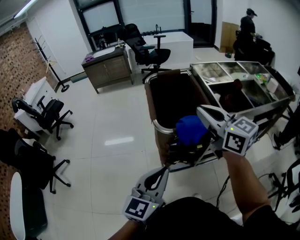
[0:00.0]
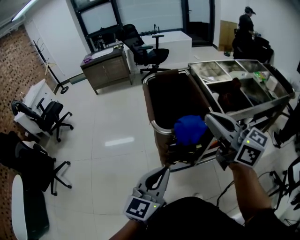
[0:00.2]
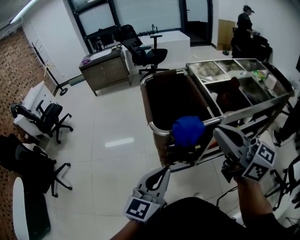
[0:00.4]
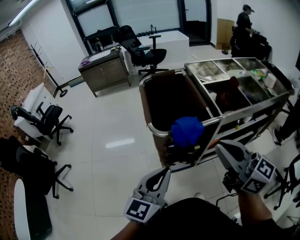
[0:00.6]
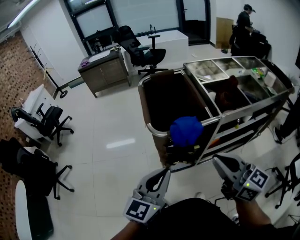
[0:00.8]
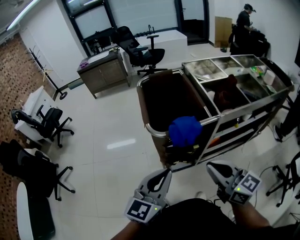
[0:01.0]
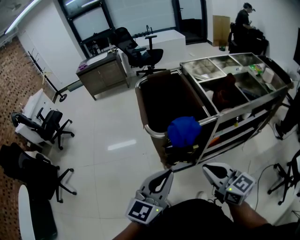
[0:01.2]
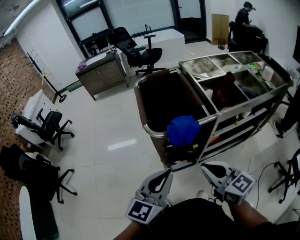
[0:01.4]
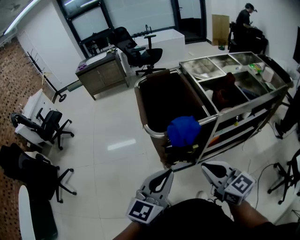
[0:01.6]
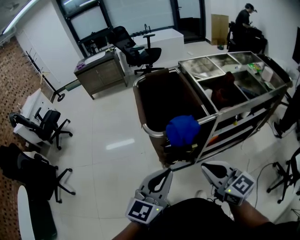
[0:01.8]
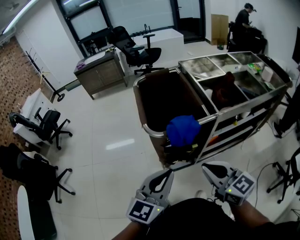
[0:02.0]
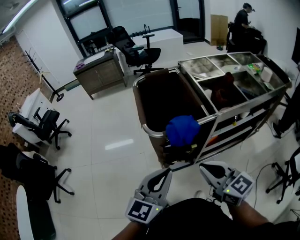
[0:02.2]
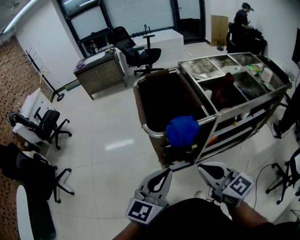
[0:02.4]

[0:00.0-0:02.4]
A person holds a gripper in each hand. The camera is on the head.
0:00.0 to 0:01.2: The right gripper moves backward and downward, about 20 cm.
0:01.2 to 0:02.4: The grippers make only small movements.

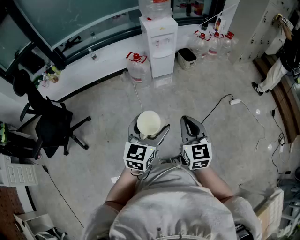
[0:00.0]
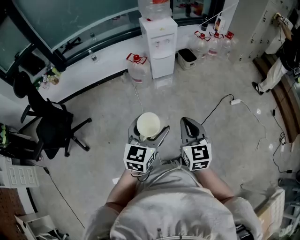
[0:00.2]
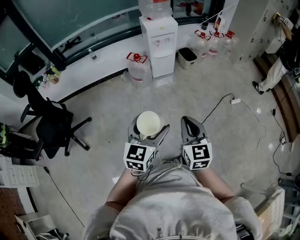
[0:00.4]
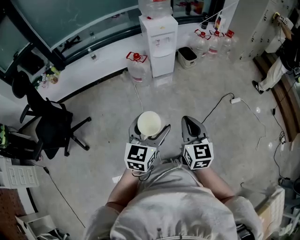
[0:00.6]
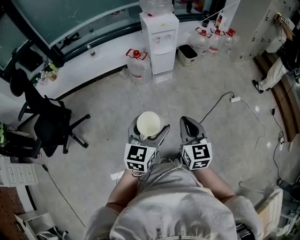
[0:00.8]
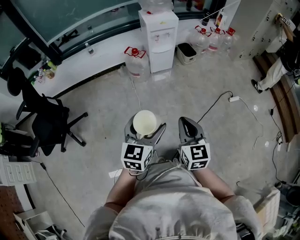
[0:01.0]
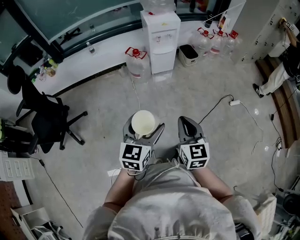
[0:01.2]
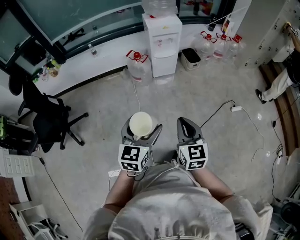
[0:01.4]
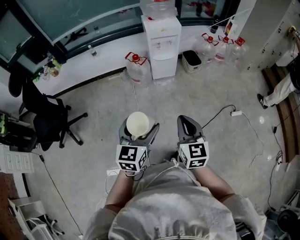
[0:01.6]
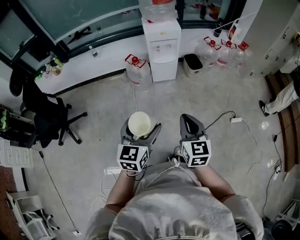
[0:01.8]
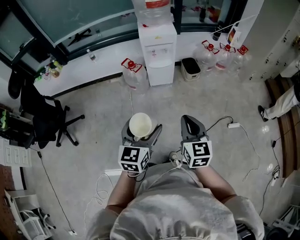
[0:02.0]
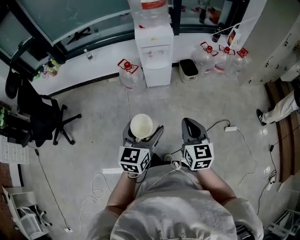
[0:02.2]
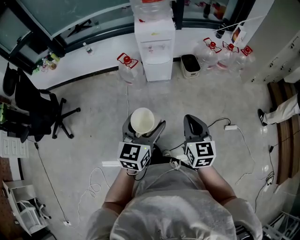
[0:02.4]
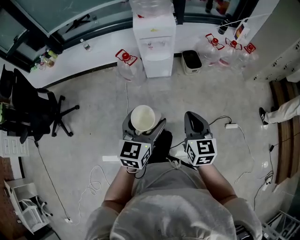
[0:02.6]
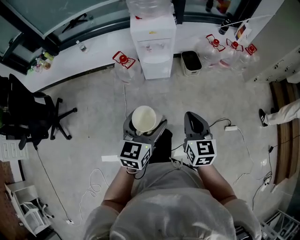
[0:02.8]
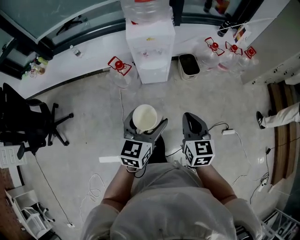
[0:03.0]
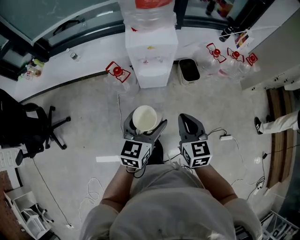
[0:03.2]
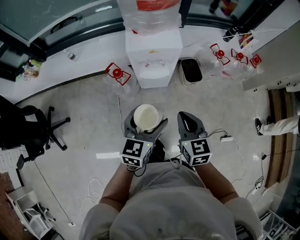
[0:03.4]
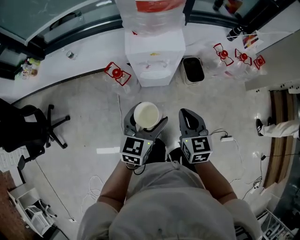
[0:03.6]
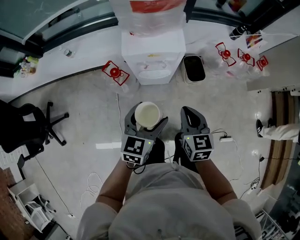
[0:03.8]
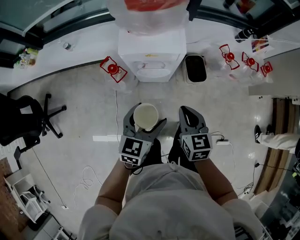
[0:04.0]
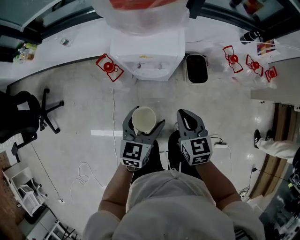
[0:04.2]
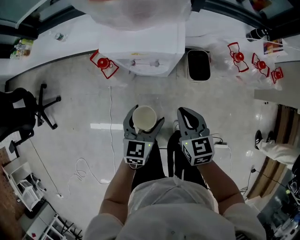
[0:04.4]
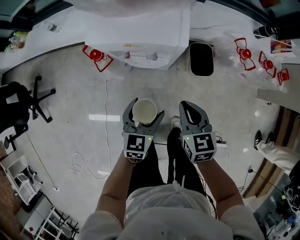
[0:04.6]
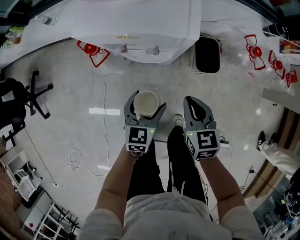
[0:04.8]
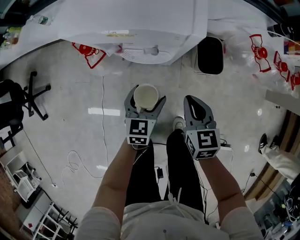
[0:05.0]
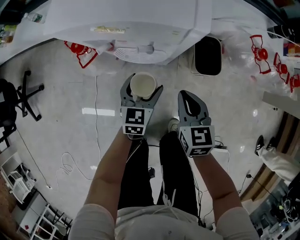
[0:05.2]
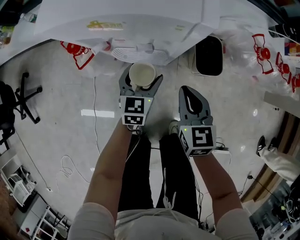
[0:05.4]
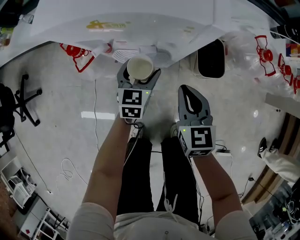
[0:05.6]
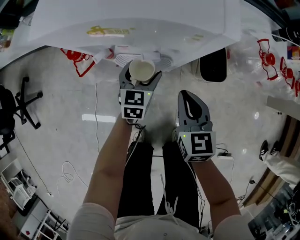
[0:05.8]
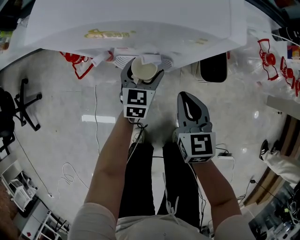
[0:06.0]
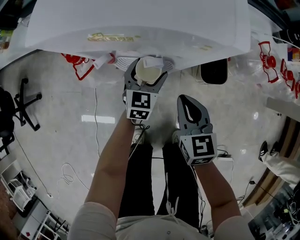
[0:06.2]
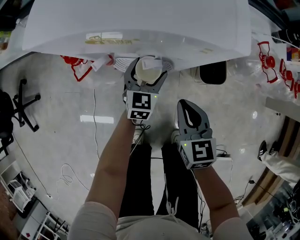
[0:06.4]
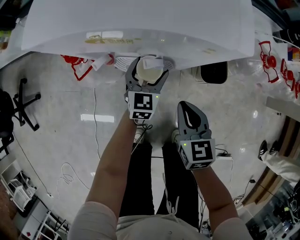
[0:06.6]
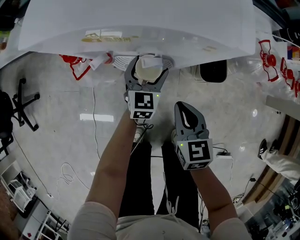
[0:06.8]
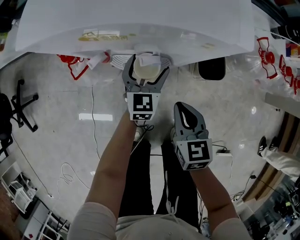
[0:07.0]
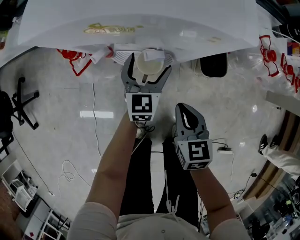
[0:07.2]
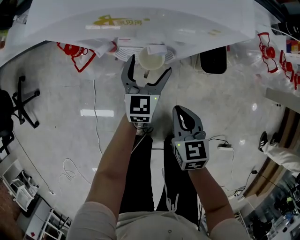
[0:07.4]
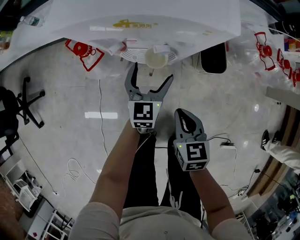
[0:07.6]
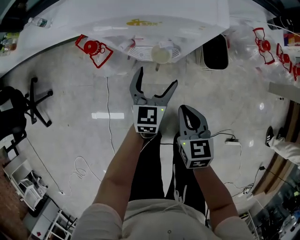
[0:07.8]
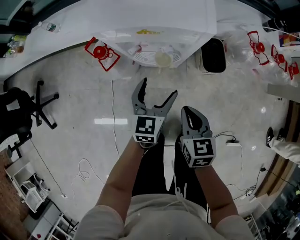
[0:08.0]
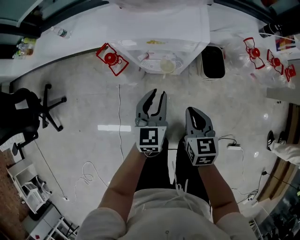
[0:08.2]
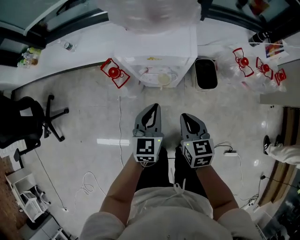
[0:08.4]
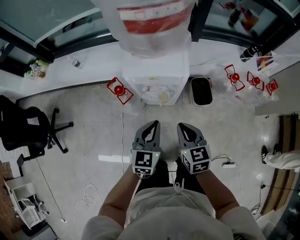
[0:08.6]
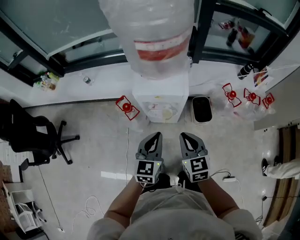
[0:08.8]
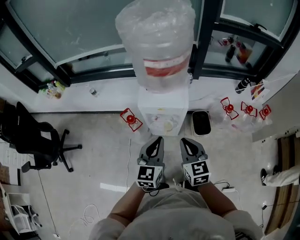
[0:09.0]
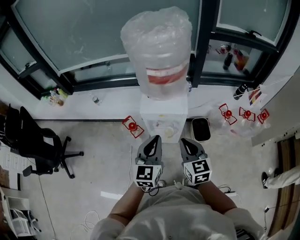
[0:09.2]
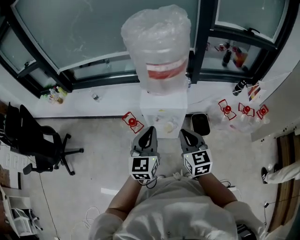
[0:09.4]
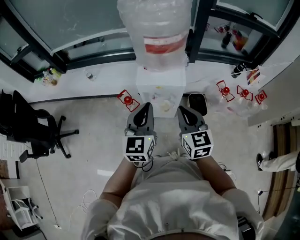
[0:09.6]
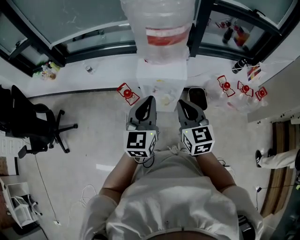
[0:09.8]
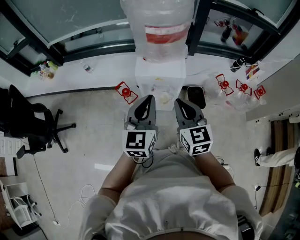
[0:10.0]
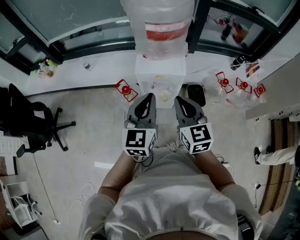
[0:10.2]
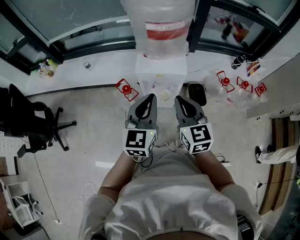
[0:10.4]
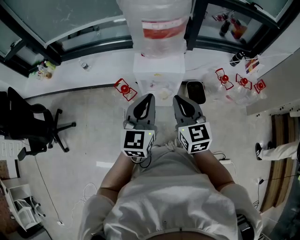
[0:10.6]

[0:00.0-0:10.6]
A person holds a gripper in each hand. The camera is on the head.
0:00.0 to 0:01.6: The left gripper moves forward, about 10 cm. Meanwhile the right gripper goes approximately 15 cm forward and to the right.
0:01.6 to 0:03.0: Both grippers move forward and to the right, some 35 cm.
0:03.0 to 0:04.6: Both grippers travel together forward and downward, approximately 35 cm. The right gripper rotates approximately 20 degrees.
0:04.6 to 0:06.0: The right gripper shifts roughly 15 cm downward and forward. Meanwhile the left gripper heads downward and forward, covering approximately 30 cm.
0:06.0 to 0:07.6: The left gripper travels upward and backward by approximately 10 cm. The right gripper moves backward, roughly 10 cm.
0:07.6 to 0:09.0: The two grippers go roughly 40 cm upward. The left gripper closes. The right gripper turns by roughly 20 degrees.
0:09.0 to 0:10.6: Both grippers move upward, about 10 cm.

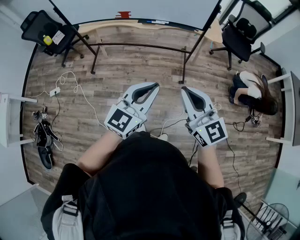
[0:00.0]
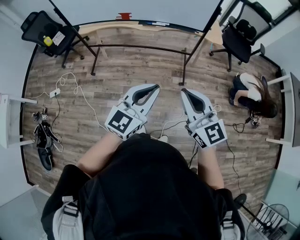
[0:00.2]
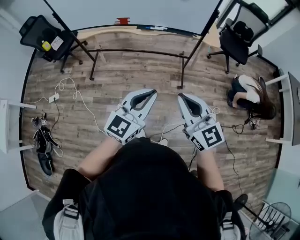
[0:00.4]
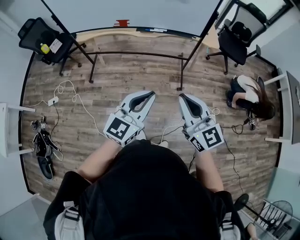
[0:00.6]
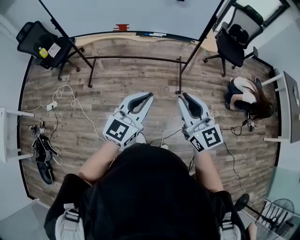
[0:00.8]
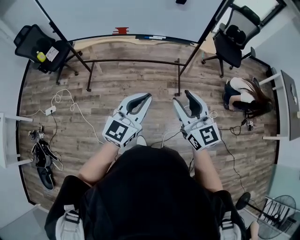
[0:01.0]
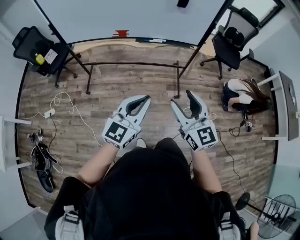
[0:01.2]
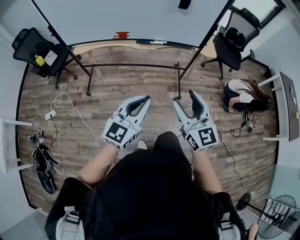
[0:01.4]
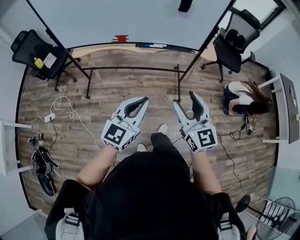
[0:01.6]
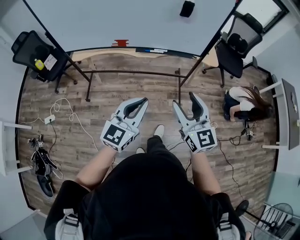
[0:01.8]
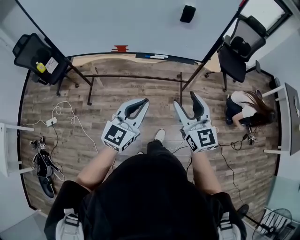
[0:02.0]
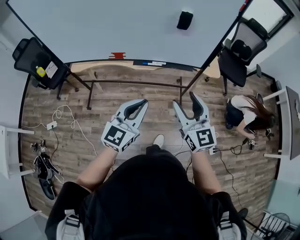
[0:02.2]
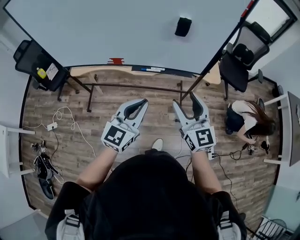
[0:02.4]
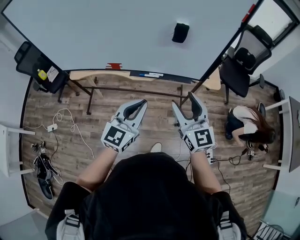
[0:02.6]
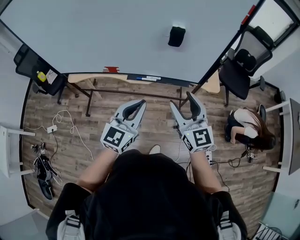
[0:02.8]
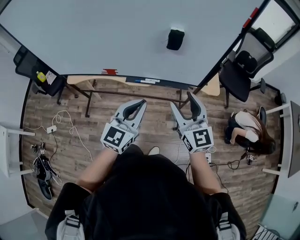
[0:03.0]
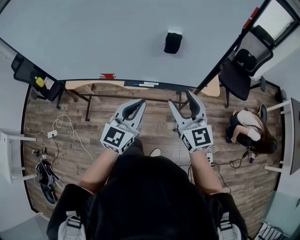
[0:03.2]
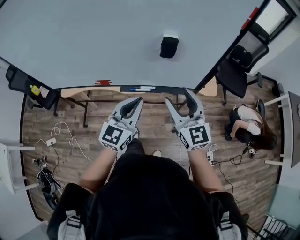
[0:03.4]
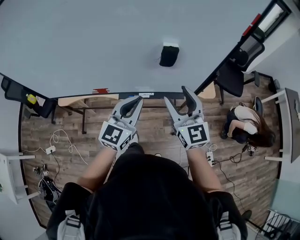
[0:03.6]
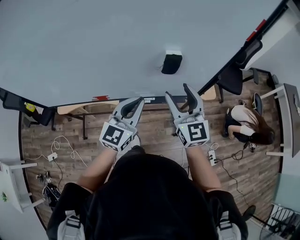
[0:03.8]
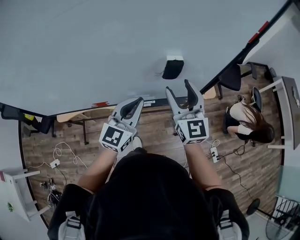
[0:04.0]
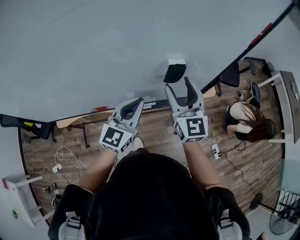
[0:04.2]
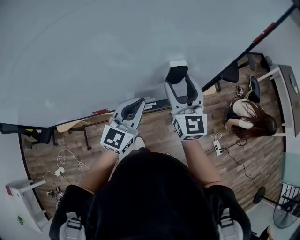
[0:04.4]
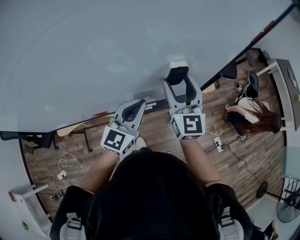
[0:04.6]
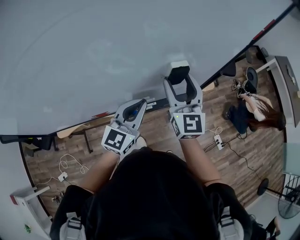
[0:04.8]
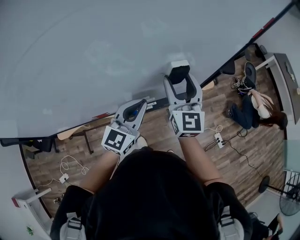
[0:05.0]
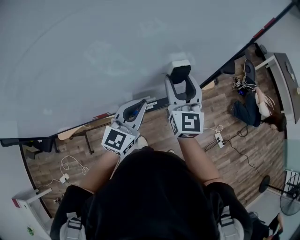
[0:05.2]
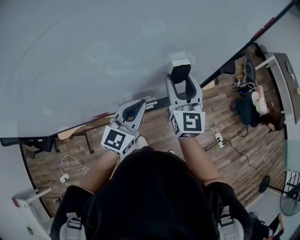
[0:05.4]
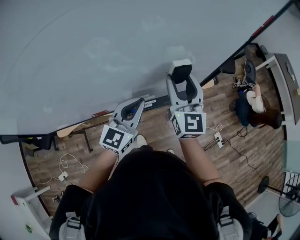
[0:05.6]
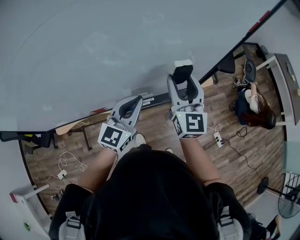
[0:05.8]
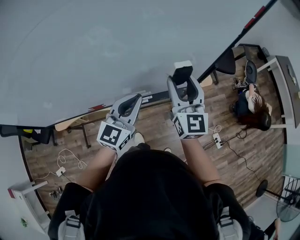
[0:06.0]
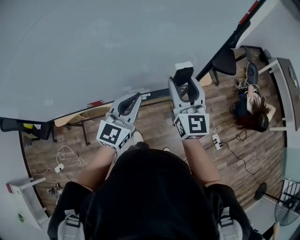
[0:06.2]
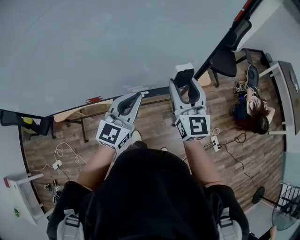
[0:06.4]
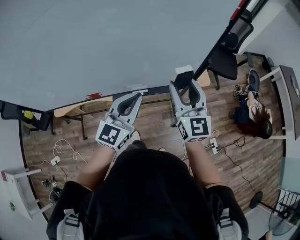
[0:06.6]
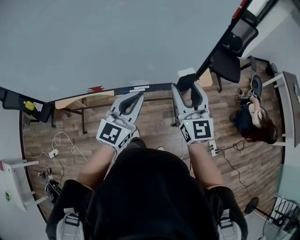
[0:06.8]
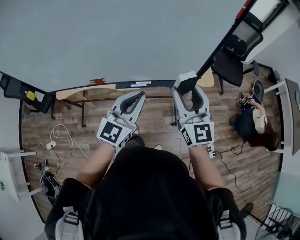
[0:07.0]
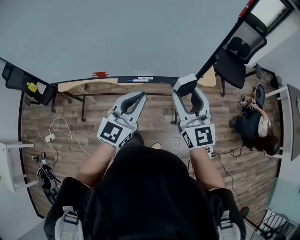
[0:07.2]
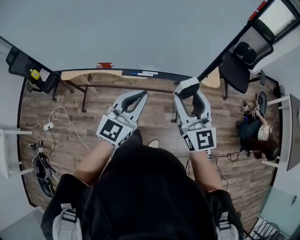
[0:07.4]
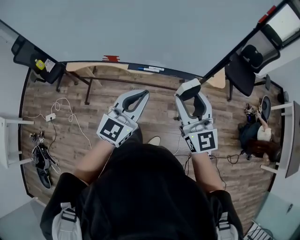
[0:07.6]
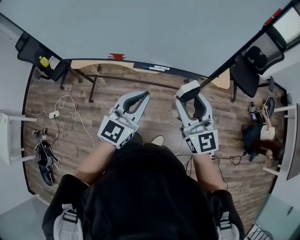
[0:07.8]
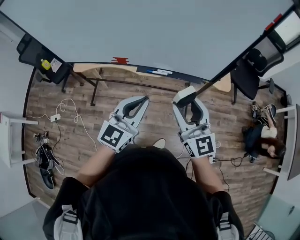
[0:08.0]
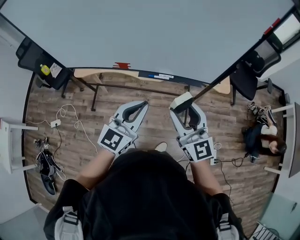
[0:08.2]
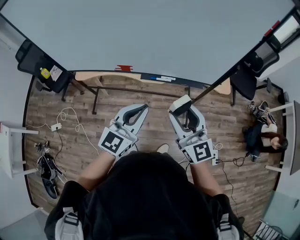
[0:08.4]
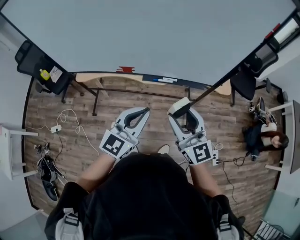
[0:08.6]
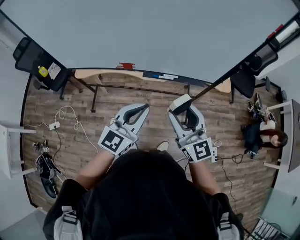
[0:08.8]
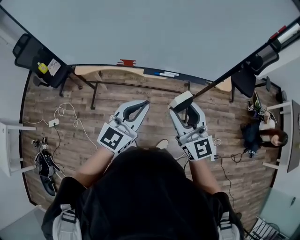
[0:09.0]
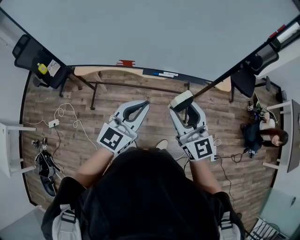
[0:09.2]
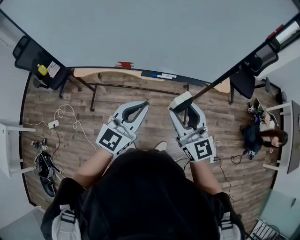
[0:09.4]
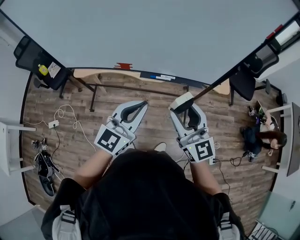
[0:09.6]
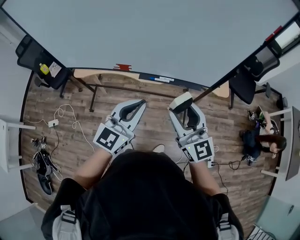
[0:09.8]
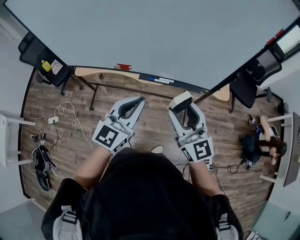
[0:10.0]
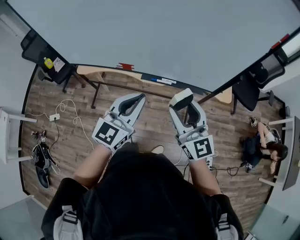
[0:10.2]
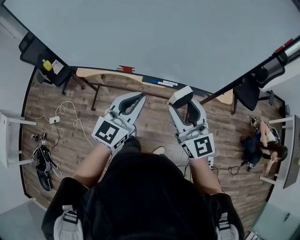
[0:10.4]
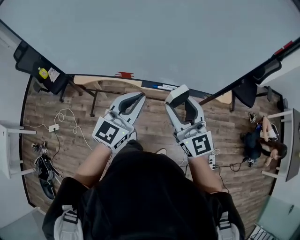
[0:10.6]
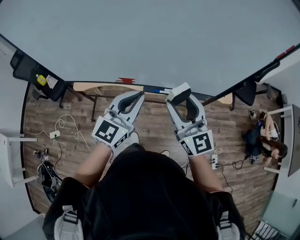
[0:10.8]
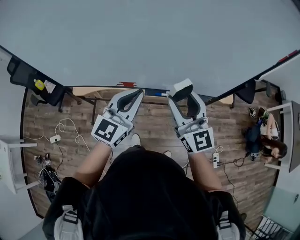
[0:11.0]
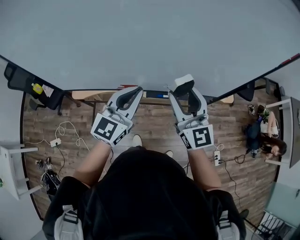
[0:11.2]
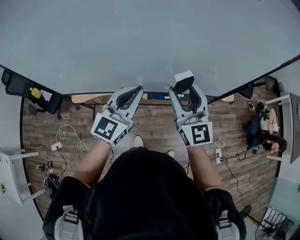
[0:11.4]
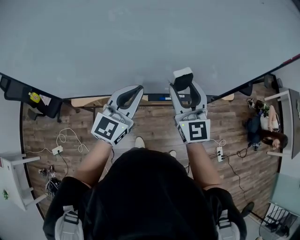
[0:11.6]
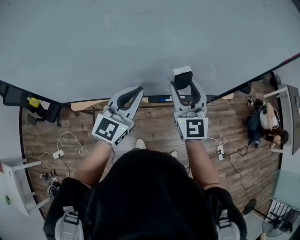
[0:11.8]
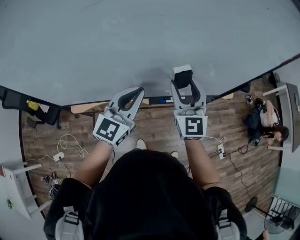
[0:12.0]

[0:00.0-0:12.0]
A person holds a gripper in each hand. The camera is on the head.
0:00.0 to 0:01.6: The right gripper travels forward and to the left by about 15 cm, and opens its fingers. The left gripper heads to the left and forward, covering approximately 15 cm.
0:01.6 to 0:03.0: The grippers both shift forward by about 30 cm.
0:03.0 to 0:04.4: Both grippers move forward, roughly 20 cm. The right gripper changes its angle by some 30 degrees.
0:04.4 to 0:06.0: The grippers make only small movements.
0:06.0 to 0:07.6: The two grippers go approximately 20 cm backward. The right gripper changes its angle by approximately 30 degrees.
0:07.6 to 0:09.0: Both grippers move to the left, approximately 15 cm.
0:09.0 to 0:10.4: The two grippers go about 5 cm forward.
0:10.4 to 0:12.0: The grippers both shift forward and to the left by roughly 25 cm. The right gripper turns by roughly 30 degrees.
